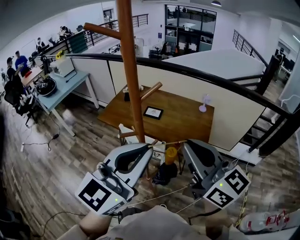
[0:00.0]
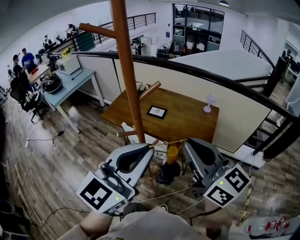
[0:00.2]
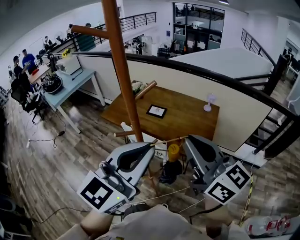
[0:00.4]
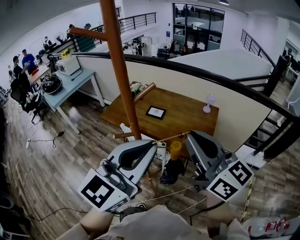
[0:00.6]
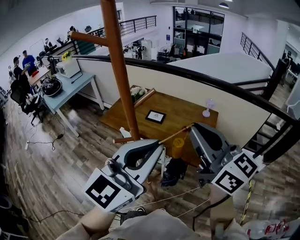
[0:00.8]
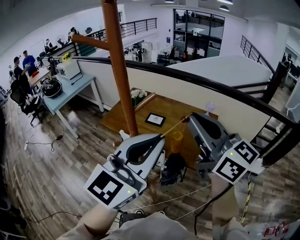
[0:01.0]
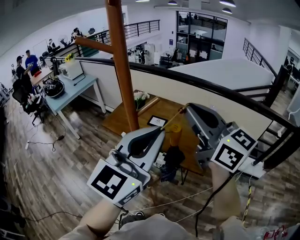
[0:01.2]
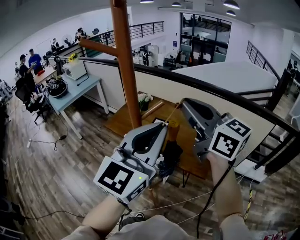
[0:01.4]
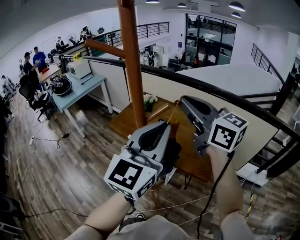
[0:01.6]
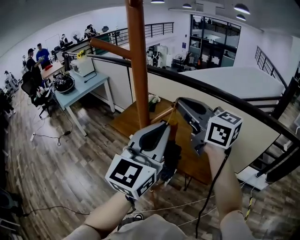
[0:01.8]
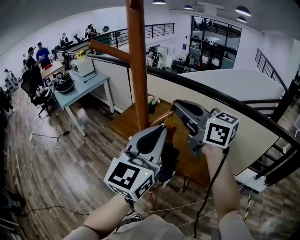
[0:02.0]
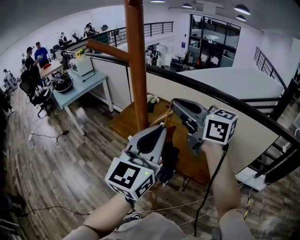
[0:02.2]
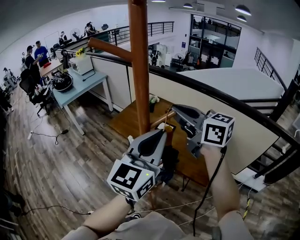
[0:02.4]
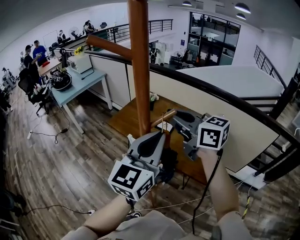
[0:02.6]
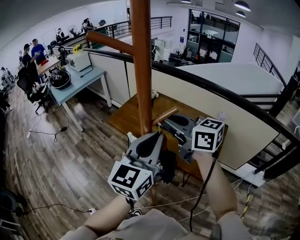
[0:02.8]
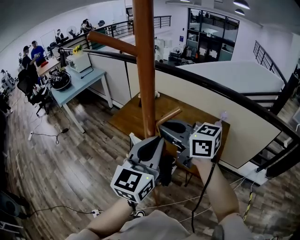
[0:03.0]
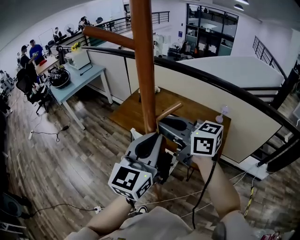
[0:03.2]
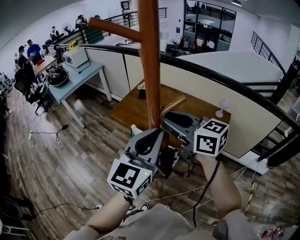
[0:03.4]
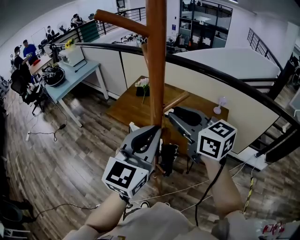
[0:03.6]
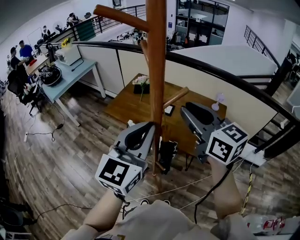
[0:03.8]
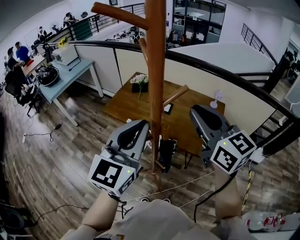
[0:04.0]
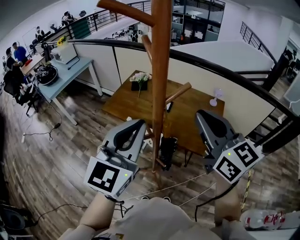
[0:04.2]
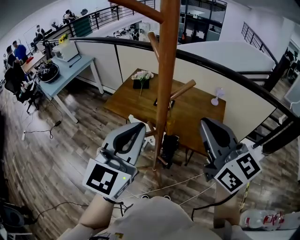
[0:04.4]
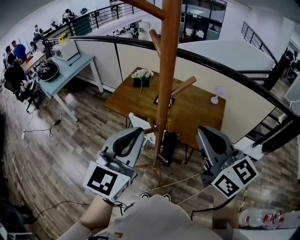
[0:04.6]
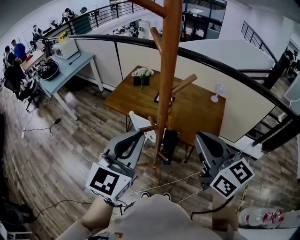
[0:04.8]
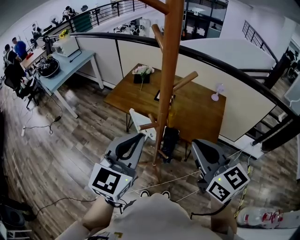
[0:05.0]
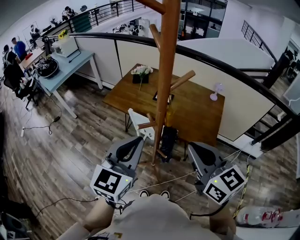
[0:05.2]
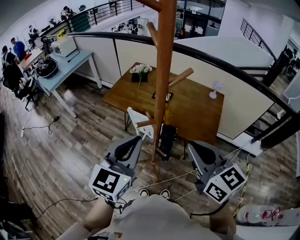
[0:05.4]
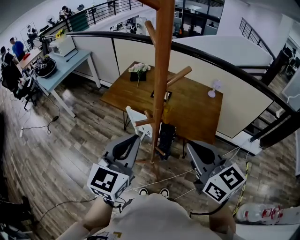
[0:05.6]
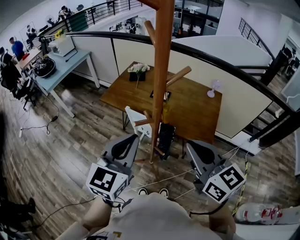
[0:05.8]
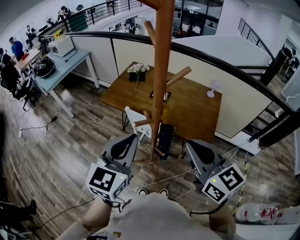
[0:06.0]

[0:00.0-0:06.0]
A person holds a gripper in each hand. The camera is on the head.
0:00.0 to 0:01.6: The left gripper moves forward, approximately 10 cm. The right gripper moves forward, roughly 20 cm.
0:01.6 to 0:03.0: The left gripper is displaced downward by roughly 10 cm. The right gripper shifts roughly 15 cm downward and to the left, and turns by some 20 degrees.
0:03.0 to 0:04.4: The right gripper travels backward and to the right by roughly 15 cm, swivels some 40 degrees, and opens, then closes once more. The left gripper shifts about 10 cm to the left.
0:04.4 to 0:06.0: The left gripper moves downward, approximately 10 cm. Meanwhile the right gripper moves downward and backward, some 10 cm.

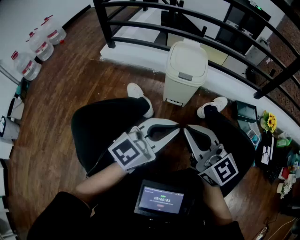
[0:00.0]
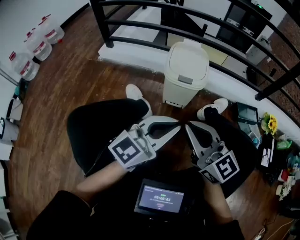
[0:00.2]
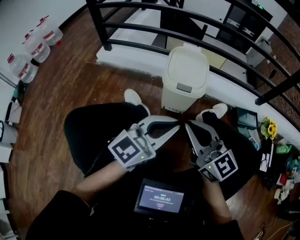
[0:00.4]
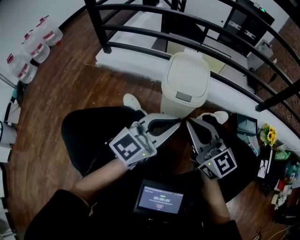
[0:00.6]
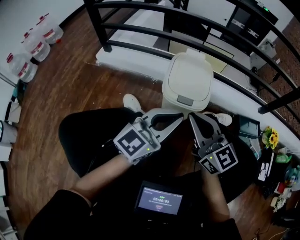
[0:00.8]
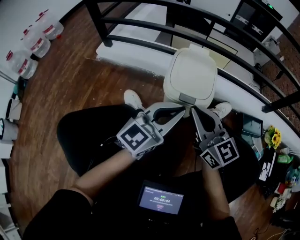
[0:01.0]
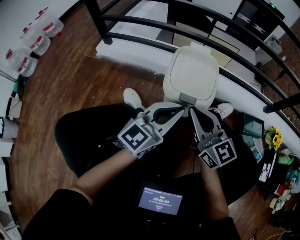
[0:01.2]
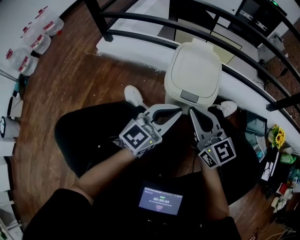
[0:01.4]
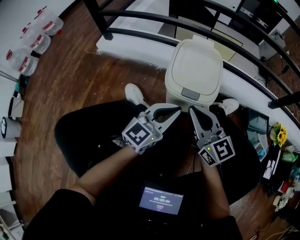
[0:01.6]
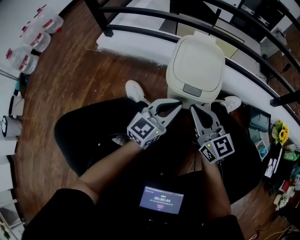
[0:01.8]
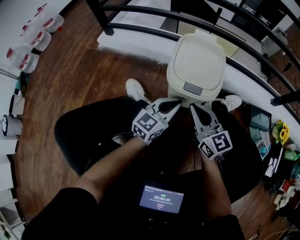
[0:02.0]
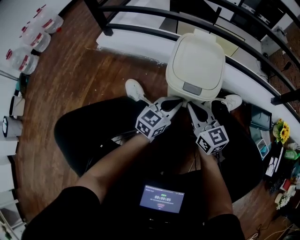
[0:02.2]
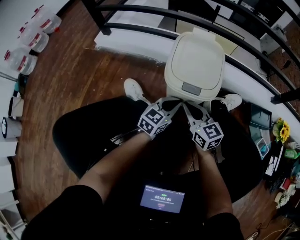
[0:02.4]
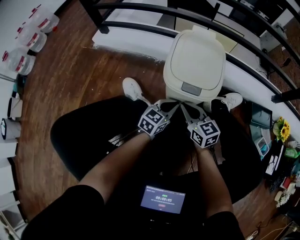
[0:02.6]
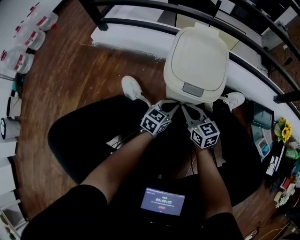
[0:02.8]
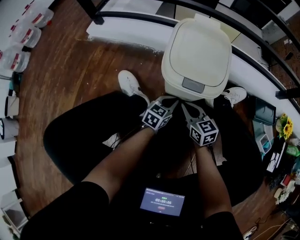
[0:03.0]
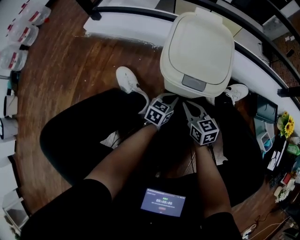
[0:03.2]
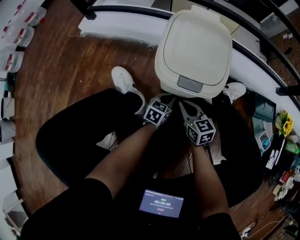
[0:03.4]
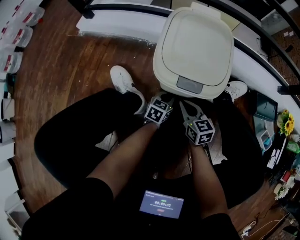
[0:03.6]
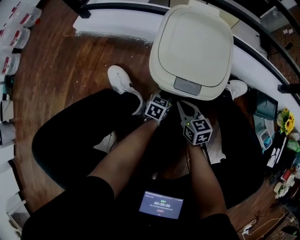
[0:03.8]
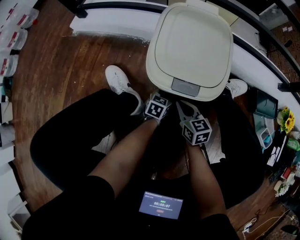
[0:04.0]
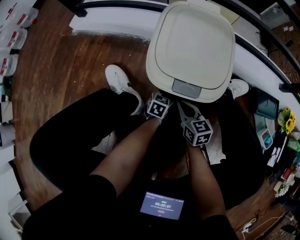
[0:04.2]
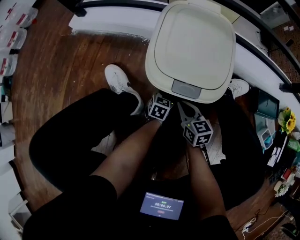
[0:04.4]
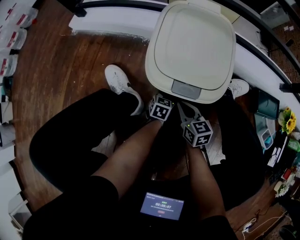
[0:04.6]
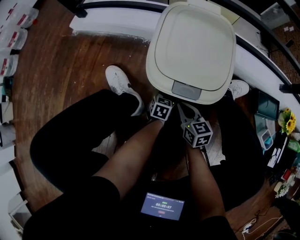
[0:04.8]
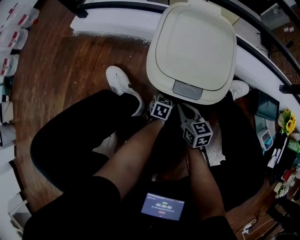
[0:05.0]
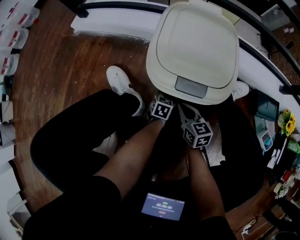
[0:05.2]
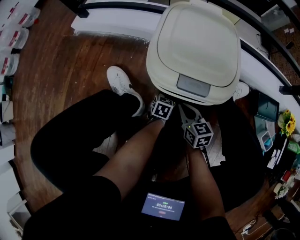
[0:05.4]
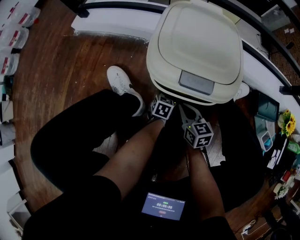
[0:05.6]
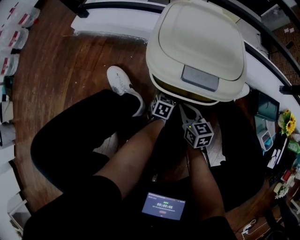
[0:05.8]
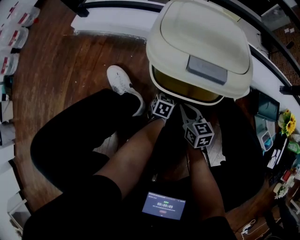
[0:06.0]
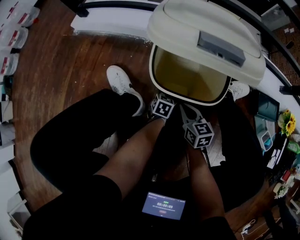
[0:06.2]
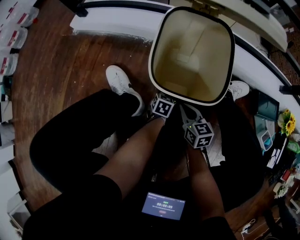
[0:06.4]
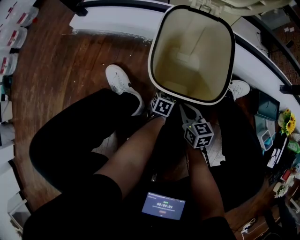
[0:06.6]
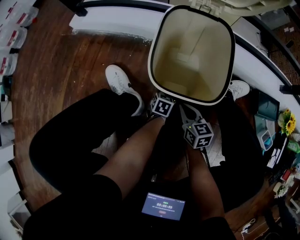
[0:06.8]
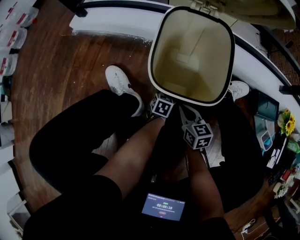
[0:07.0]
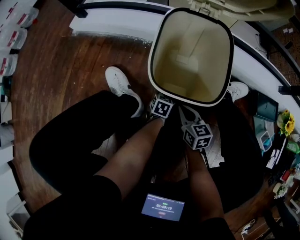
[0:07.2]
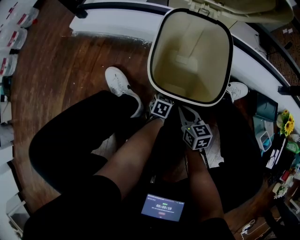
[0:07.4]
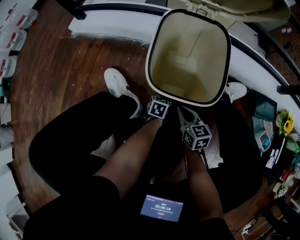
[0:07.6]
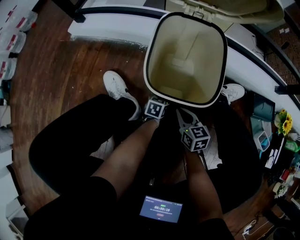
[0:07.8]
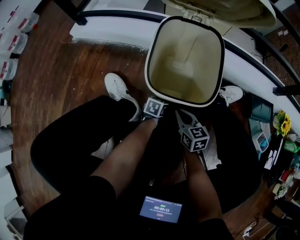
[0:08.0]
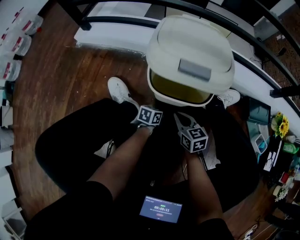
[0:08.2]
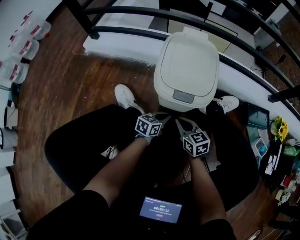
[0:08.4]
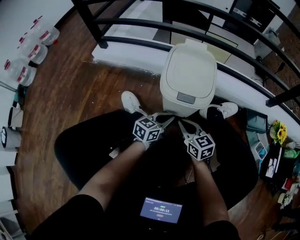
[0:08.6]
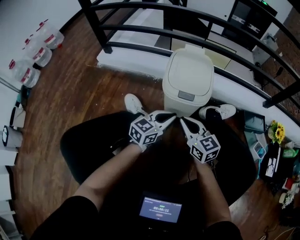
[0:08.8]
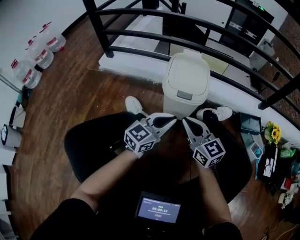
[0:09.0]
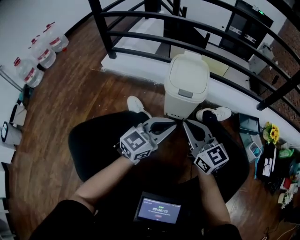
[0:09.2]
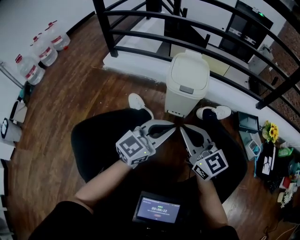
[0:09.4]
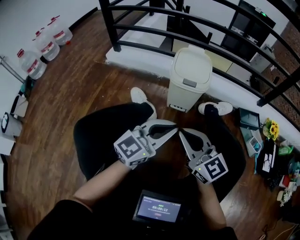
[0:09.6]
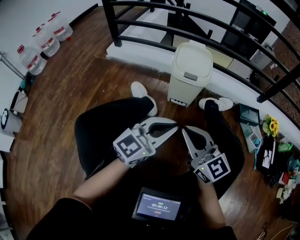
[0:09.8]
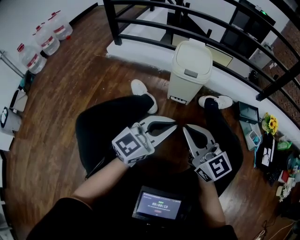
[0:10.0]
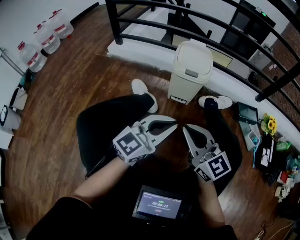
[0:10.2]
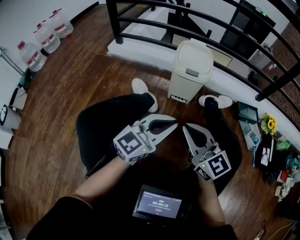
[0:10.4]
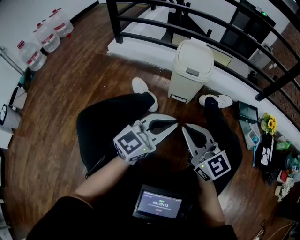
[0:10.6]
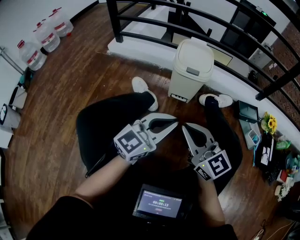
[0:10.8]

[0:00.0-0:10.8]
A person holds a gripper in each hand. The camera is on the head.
0:00.0 to 0:01.6: Both grippers move forward and downward, about 30 cm.
0:01.6 to 0:03.0: The two grippers go about 25 cm downward. The left gripper swivels some 30 degrees. The right gripper turns by roughly 30 degrees.
0:03.0 to 0:04.6: The left gripper heads downward and forward, covering approximately 15 cm. The right gripper is displaced downward by some 10 cm.
0:04.6 to 0:07.8: The grippers move only a little.
0:07.8 to 0:09.2: Both grippers travel together upward and backward, some 50 cm. The right gripper rotates roughly 40 degrees. The left gripper angles its fingers upward, by roughly 40 degrees.
0:09.2 to 0:10.8: The grippers both shift backward by some 15 cm.

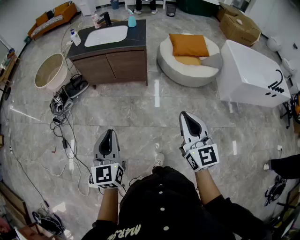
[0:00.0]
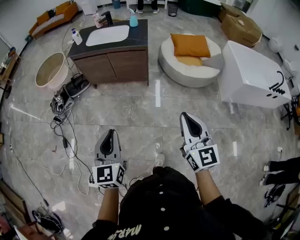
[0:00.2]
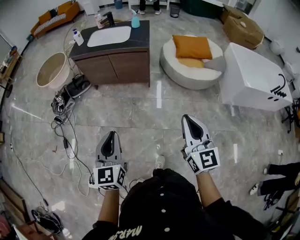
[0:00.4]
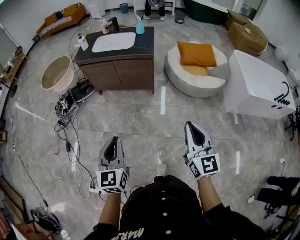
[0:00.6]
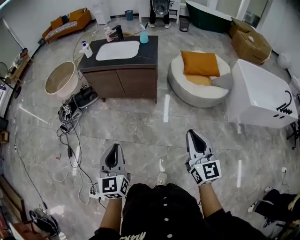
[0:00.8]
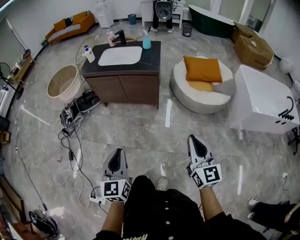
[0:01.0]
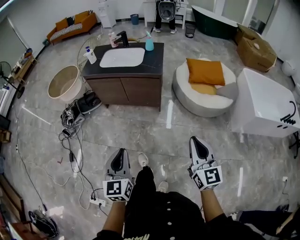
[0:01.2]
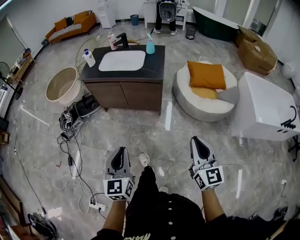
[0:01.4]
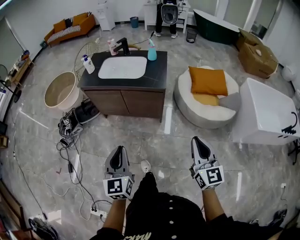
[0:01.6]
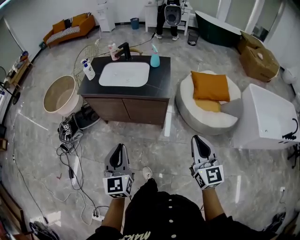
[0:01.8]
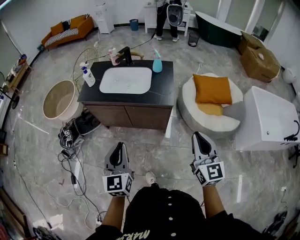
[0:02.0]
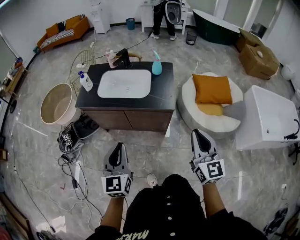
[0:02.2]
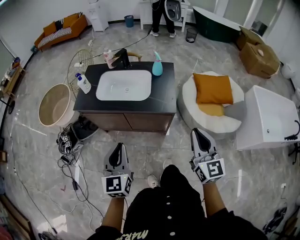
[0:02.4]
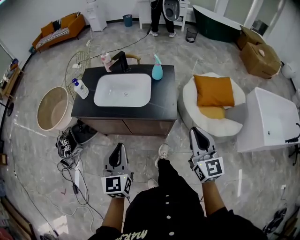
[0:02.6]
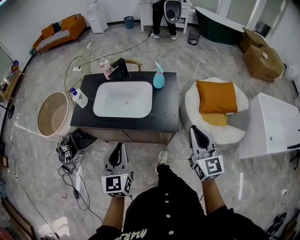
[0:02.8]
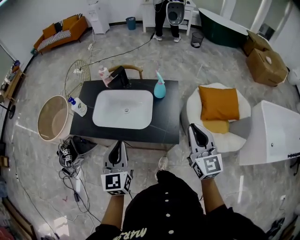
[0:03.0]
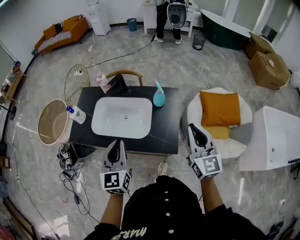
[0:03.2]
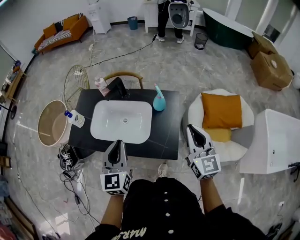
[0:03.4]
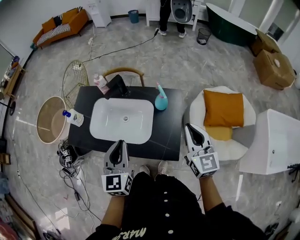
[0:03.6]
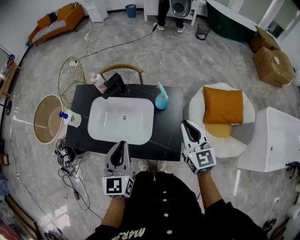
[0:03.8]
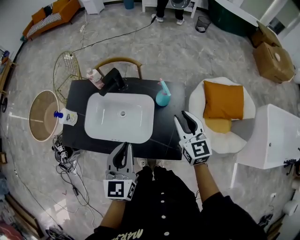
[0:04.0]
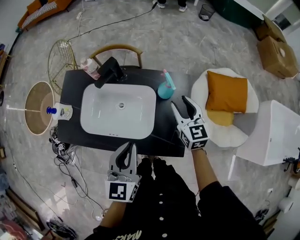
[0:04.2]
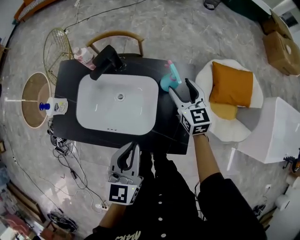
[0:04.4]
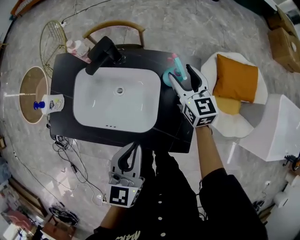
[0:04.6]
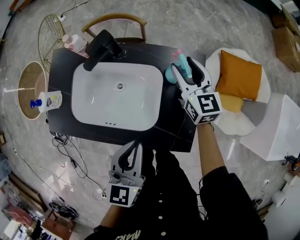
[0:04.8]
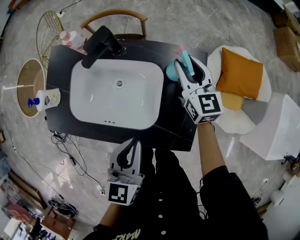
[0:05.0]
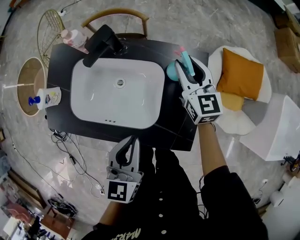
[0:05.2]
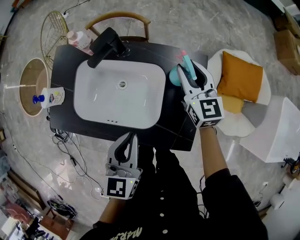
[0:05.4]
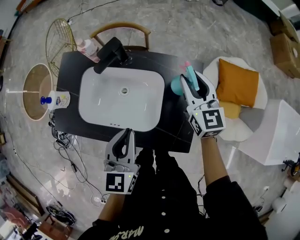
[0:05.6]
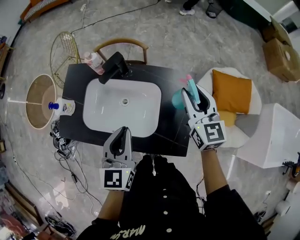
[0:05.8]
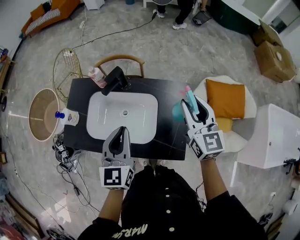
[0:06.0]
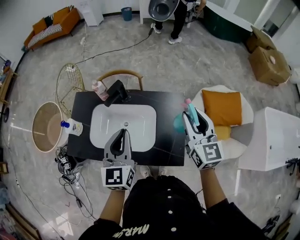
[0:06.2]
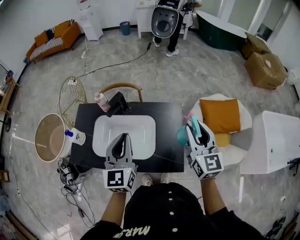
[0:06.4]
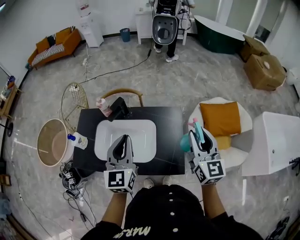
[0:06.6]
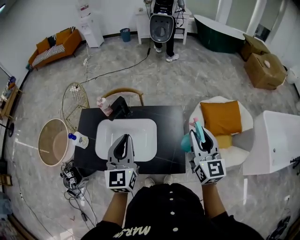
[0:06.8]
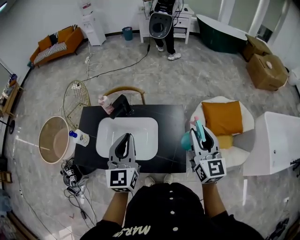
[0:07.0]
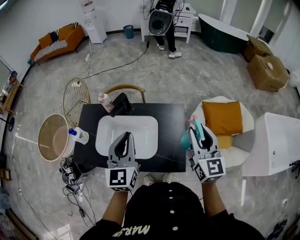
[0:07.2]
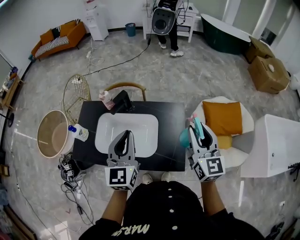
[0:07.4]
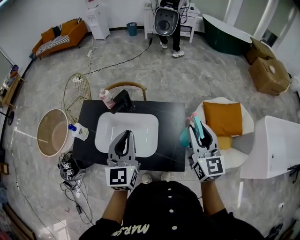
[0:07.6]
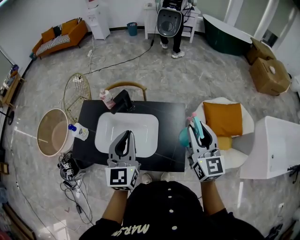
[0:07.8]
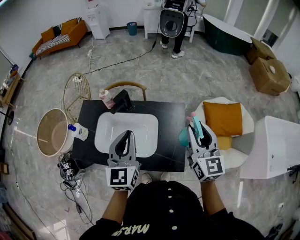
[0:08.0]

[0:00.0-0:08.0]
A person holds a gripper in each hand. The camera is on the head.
0:00.0 to 0:01.6: The grippers both shift forward by about 25 cm.
0:01.6 to 0:03.2: Both grippers are carried forward, about 50 cm.
0:03.2 to 0:04.8: The right gripper heads forward and downward, covering some 40 cm, and opens up. The left gripper is displaced downward, forward and to the right by approximately 15 cm, and turns by some 20 degrees.
0:04.8 to 0:06.4: The left gripper is displaced upward by roughly 15 cm, and swivels about 20 degrees, while the right gripper shifts approximately 30 cm upward and backward.
0:06.4 to 0:08.0: The grippers stay close to where they were, moving slightly.
